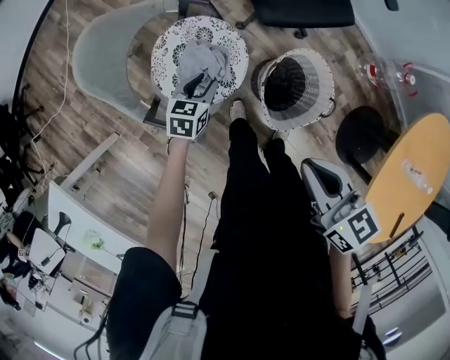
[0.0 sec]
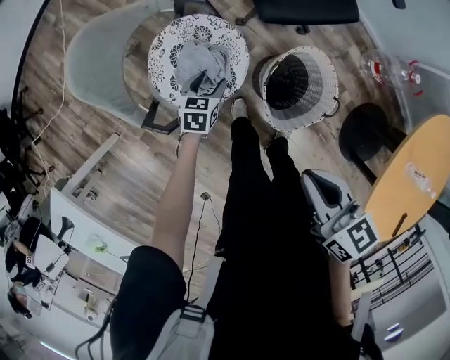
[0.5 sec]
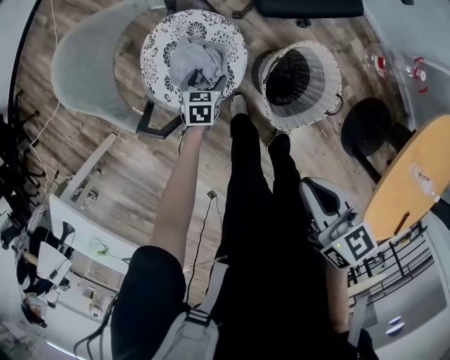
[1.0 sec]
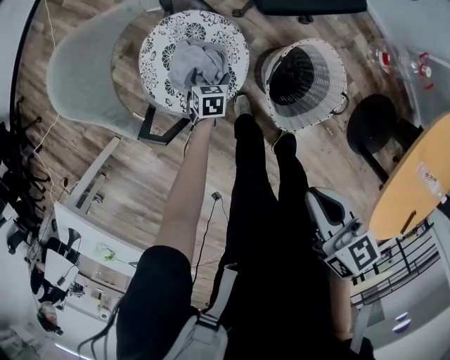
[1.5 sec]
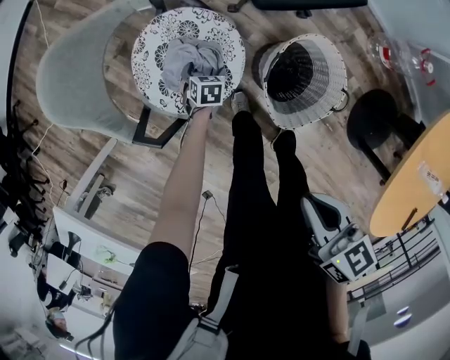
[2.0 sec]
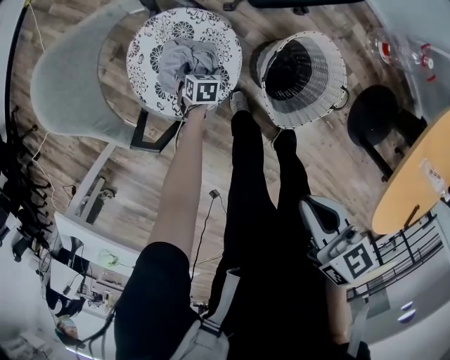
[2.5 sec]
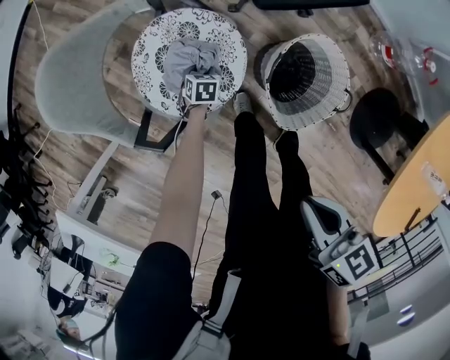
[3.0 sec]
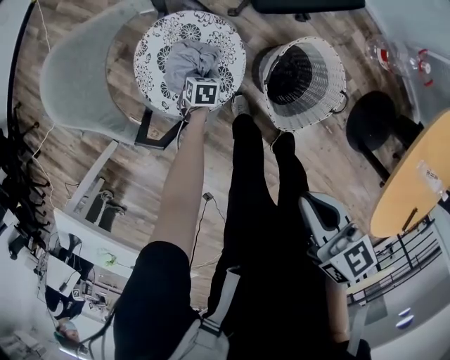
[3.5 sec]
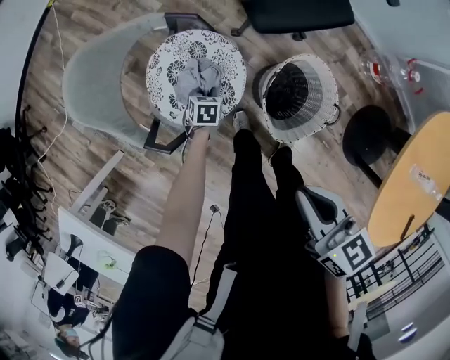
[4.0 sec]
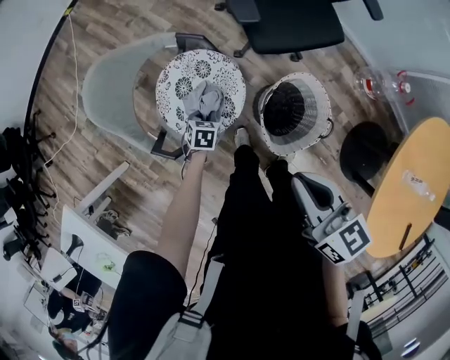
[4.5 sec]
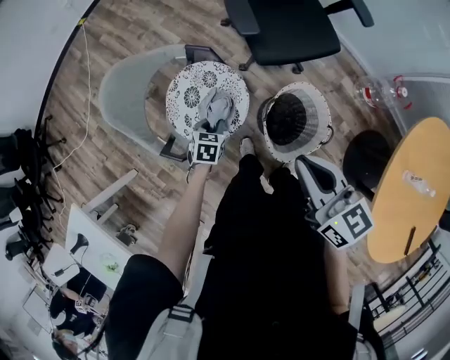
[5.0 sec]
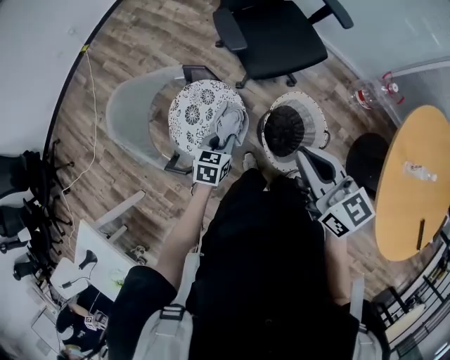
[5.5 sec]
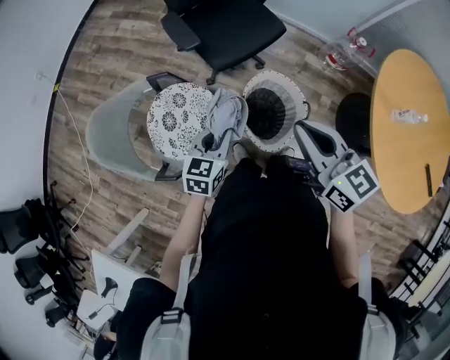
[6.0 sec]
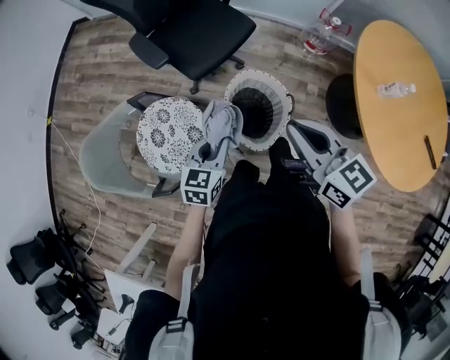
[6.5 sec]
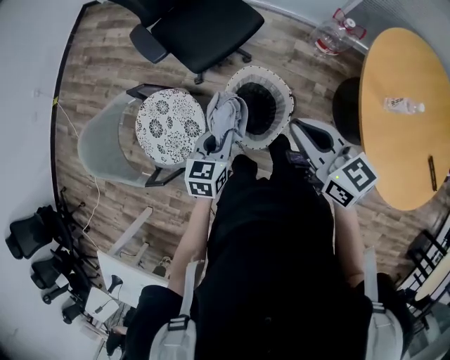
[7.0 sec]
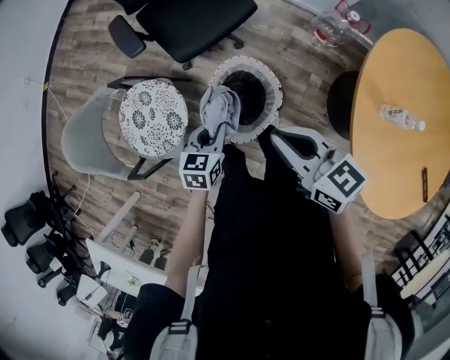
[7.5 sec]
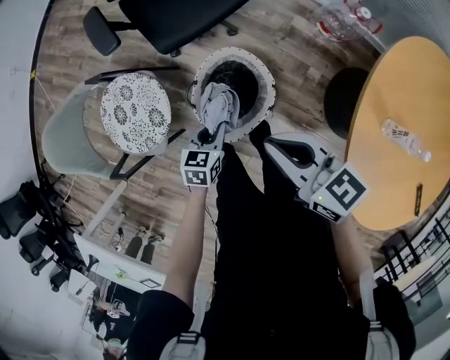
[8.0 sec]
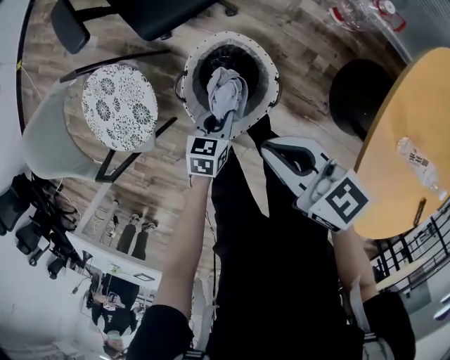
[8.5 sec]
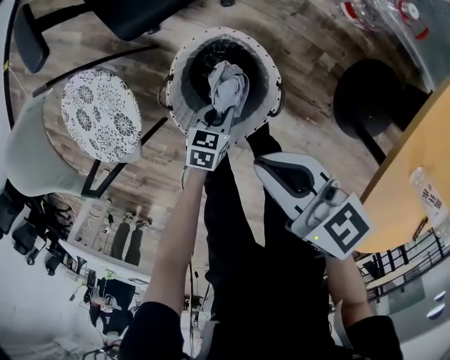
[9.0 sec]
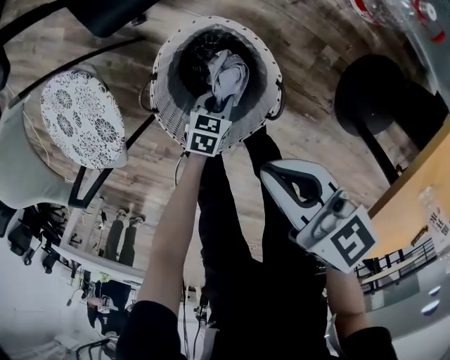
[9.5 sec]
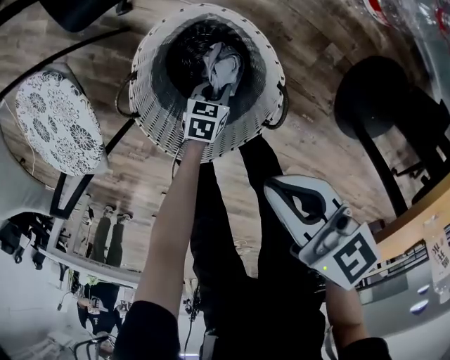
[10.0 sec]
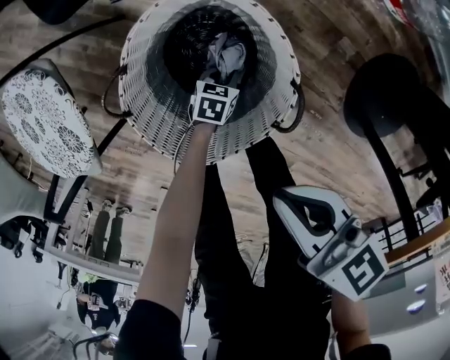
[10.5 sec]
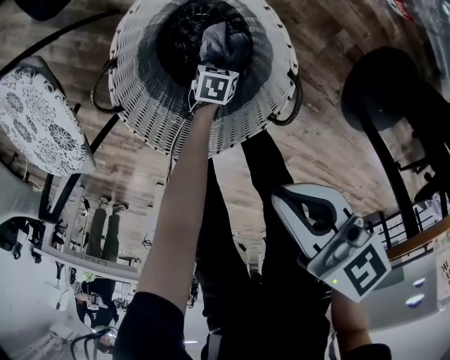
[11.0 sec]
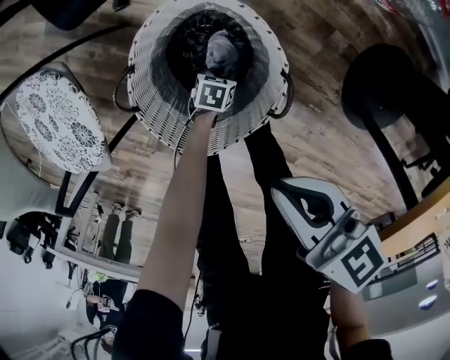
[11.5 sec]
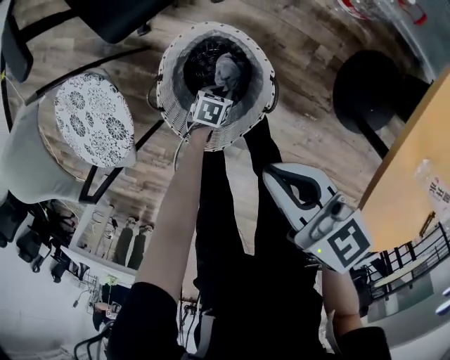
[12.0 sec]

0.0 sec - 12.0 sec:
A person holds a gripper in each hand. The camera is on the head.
0.0 sec - 2.0 sec: The left gripper is displaced downward by about 25 cm, changes its angle by approximately 20 degrees, and opens up. Meanwhile the right gripper travels downward by about 10 cm.
2.0 sec - 4.0 sec: Both grippers move upward, about 5 cm. The left gripper closes.
4.0 sec - 6.0 sec: The right gripper goes about 15 cm upward and to the right, and turns by approximately 30 degrees. Meanwhile the left gripper moves upward and to the right, about 35 cm, and tilts its fingers roughly 40 degrees upward.
6.0 sec - 8.0 sec: Both grippers move to the right and downward, roughly 25 cm. The right gripper rotates approximately 20 degrees. The left gripper rotates some 20 degrees.
8.0 sec - 10.0 sec: The left gripper travels downward by about 40 cm; the right gripper is displaced downward by about 30 cm.
10.0 sec - 12.0 sec: The left gripper is displaced upward by roughly 5 cm. Meanwhile the right gripper is displaced upward by some 10 cm.

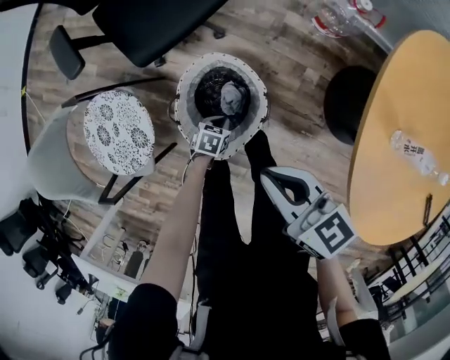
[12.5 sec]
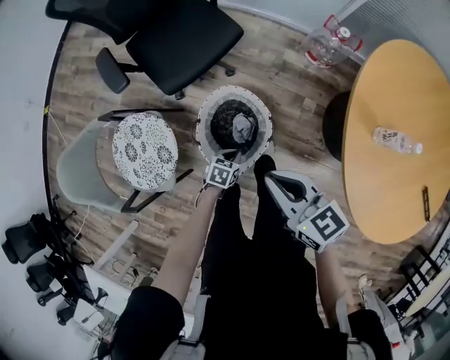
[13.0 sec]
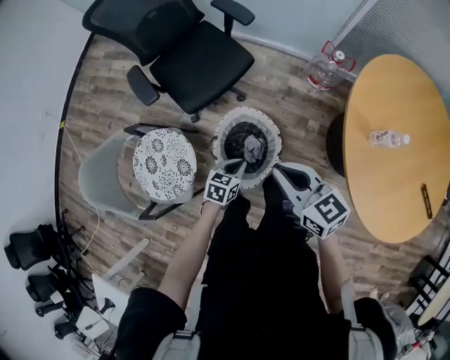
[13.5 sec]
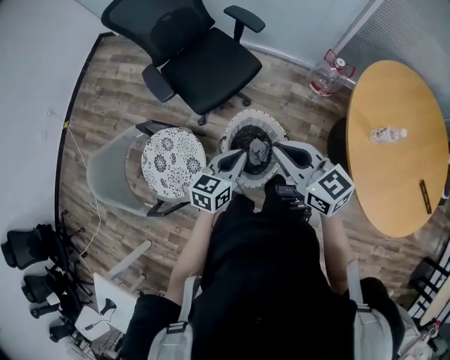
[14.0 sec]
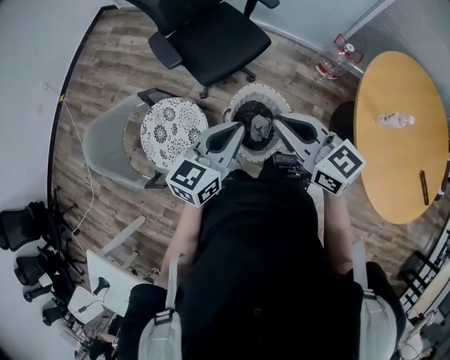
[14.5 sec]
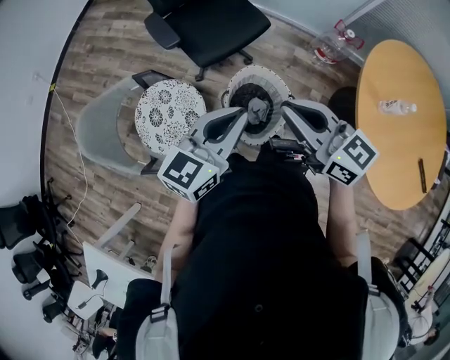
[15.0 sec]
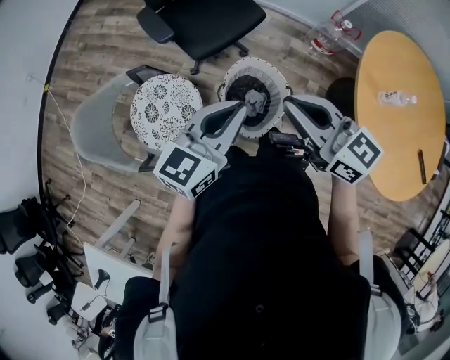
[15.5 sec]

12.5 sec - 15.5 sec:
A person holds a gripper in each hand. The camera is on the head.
12.5 sec - 14.0 sec: The right gripper is displaced upward and to the left by roughly 20 cm. Meanwhile the left gripper moves upward, some 40 cm, and points its fingers about 40 degrees further upward.
14.0 sec - 15.5 sec: The left gripper travels upward and to the left by about 15 cm. Meanwhile the right gripper moves to the left, approximately 5 cm.

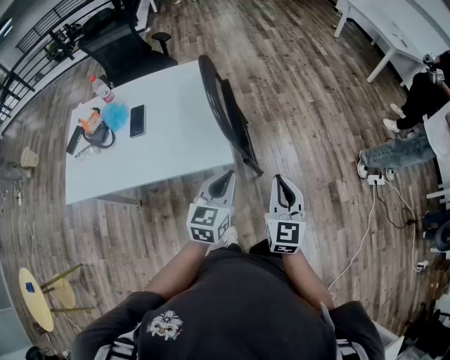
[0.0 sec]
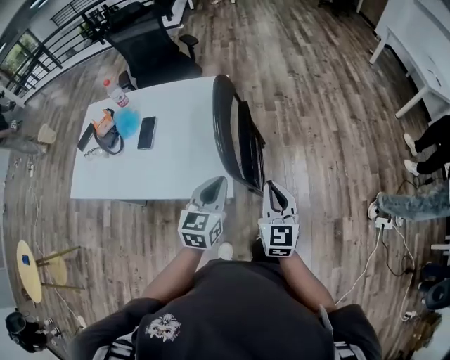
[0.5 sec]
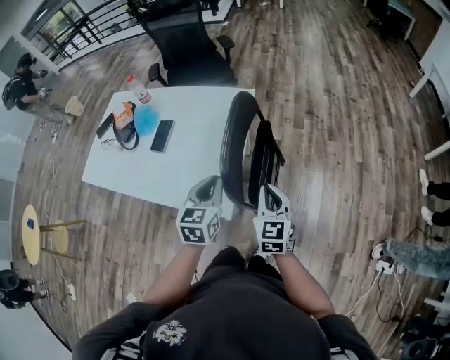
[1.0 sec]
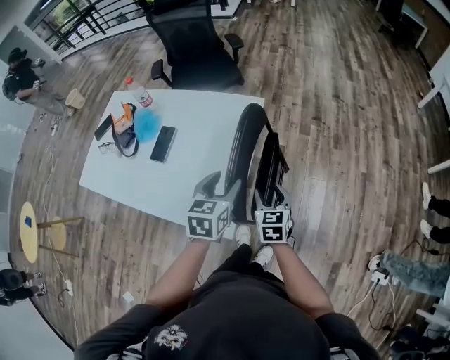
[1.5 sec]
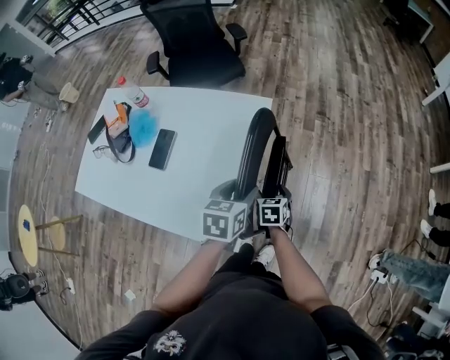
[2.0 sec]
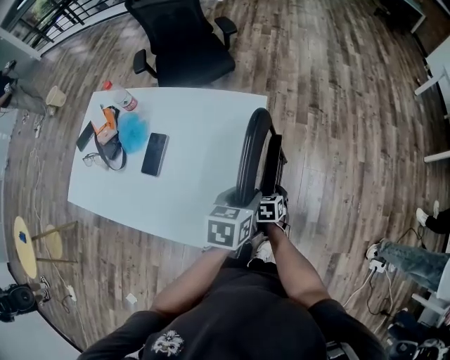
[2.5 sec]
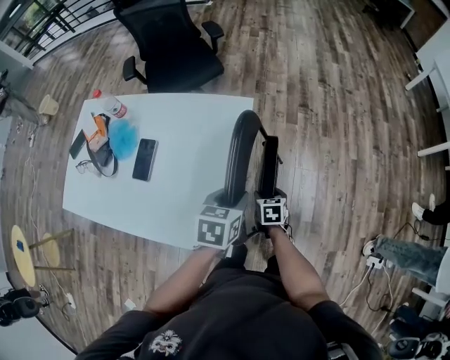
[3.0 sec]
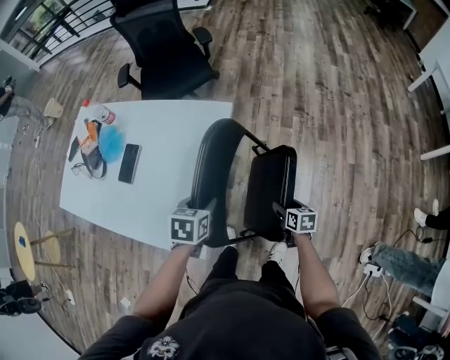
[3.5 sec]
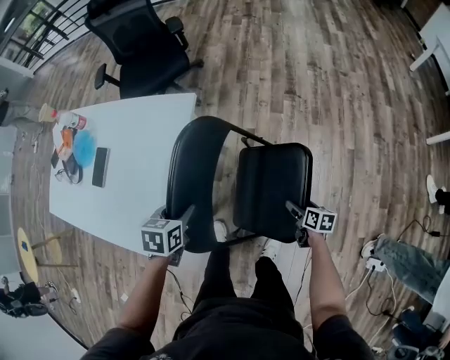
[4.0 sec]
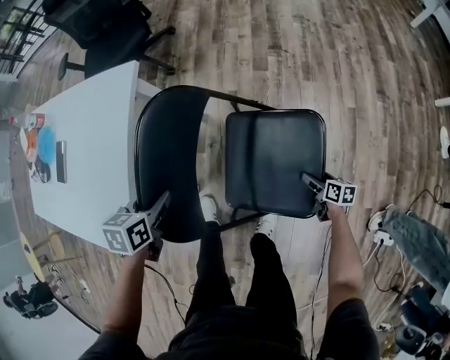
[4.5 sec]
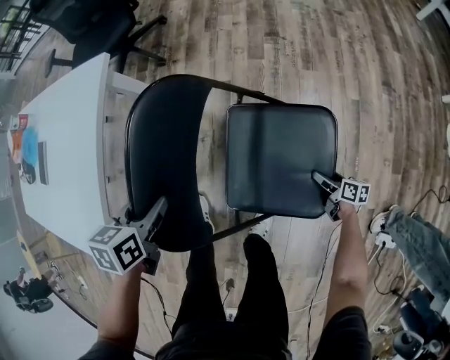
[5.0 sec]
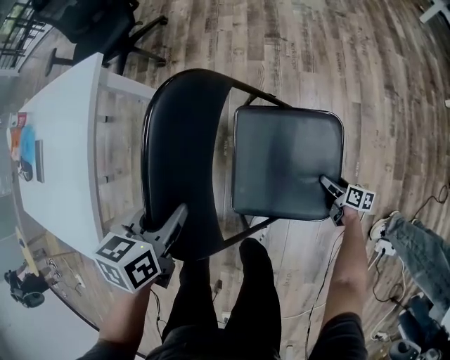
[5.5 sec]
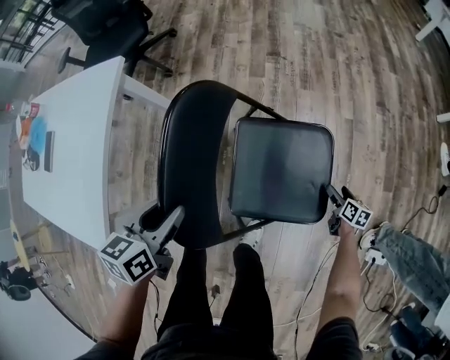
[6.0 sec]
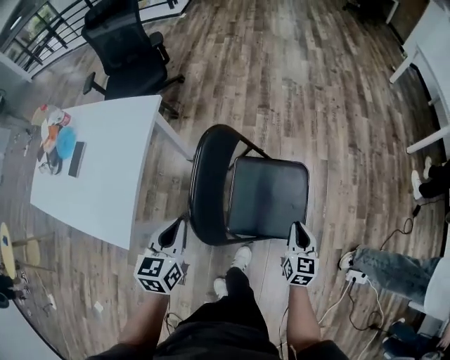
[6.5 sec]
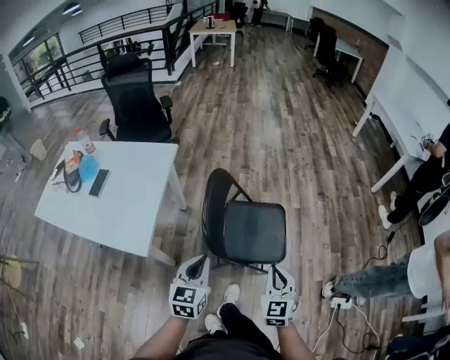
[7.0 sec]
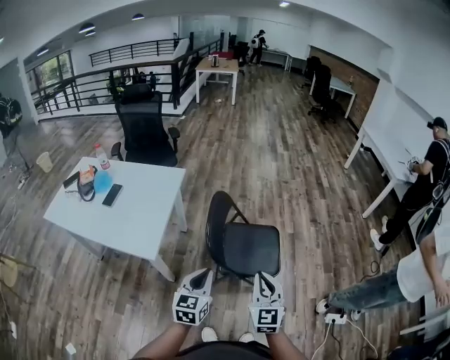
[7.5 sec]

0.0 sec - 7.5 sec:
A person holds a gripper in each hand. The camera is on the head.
0.0 sec - 2.0 sec: The left gripper moves some 35 cm, rotates roughly 40 degrees, and opens its fingers. Meanwhile the right gripper moves some 50 cm, tilts its fingers about 40 degrees downward, and opens its fingers.
2.0 sec - 4.0 sec: The left gripper heads downward and to the right, covering approximately 15 cm; the right gripper goes roughly 35 cm to the right, and rotates about 40 degrees.
4.0 sec - 5.5 sec: The grippers both shift to the right and downward by approximately 30 cm.
5.5 sec - 7.5 sec: The left gripper heads backward and upward, covering roughly 40 cm, angles its fingers upward, by approximately 30 degrees, and closes up. The right gripper travels upward and backward by approximately 80 cm, tips its fingers upward by approximately 30 degrees, and closes up.

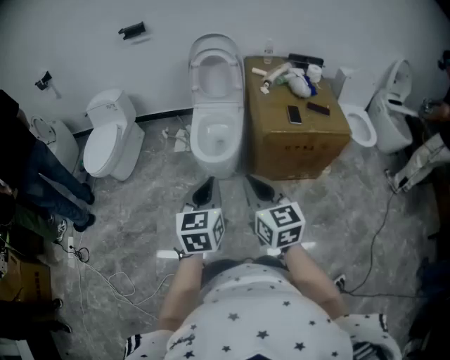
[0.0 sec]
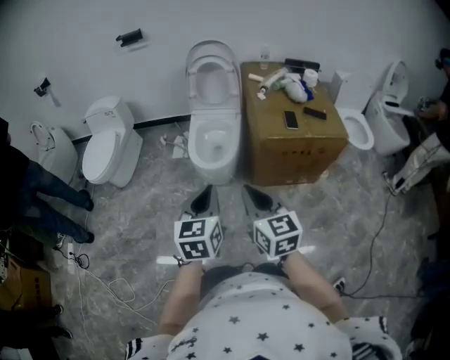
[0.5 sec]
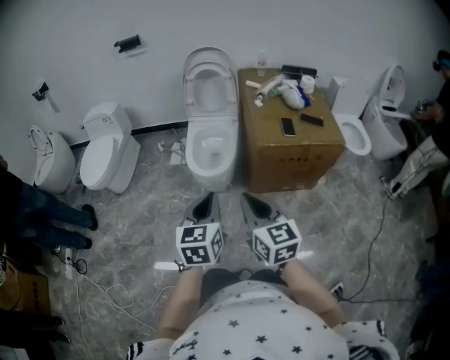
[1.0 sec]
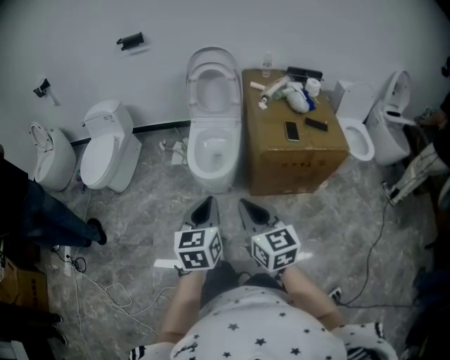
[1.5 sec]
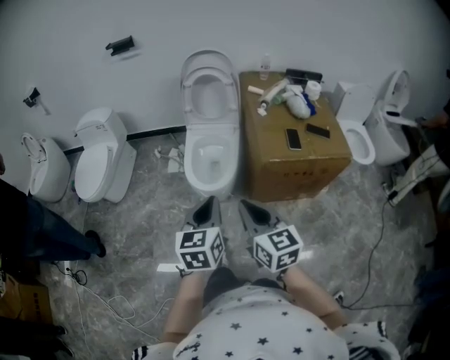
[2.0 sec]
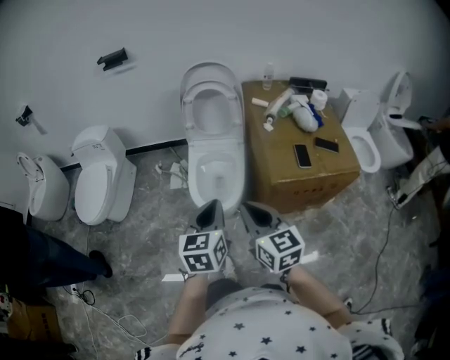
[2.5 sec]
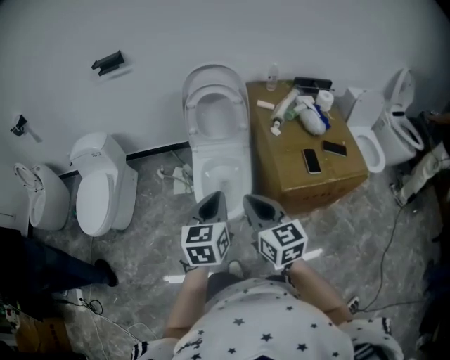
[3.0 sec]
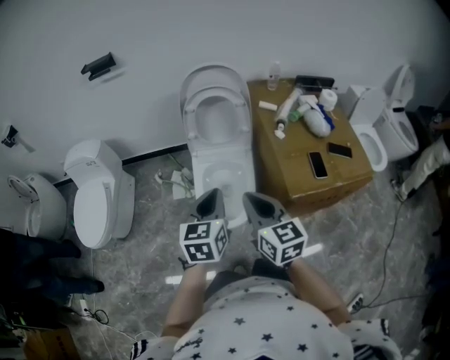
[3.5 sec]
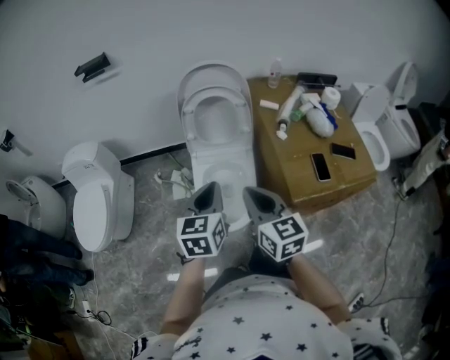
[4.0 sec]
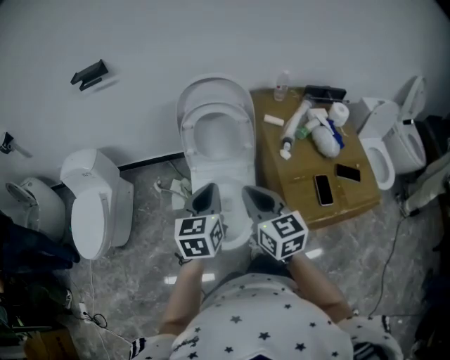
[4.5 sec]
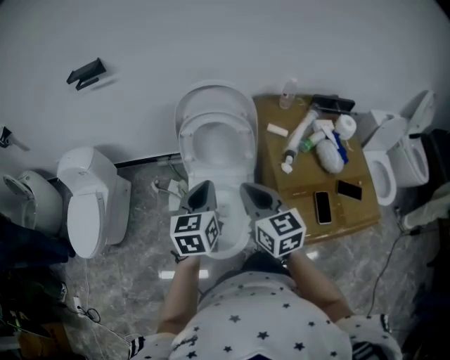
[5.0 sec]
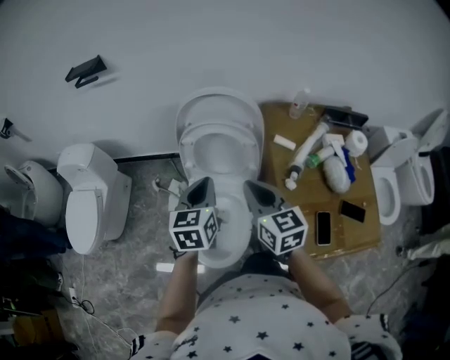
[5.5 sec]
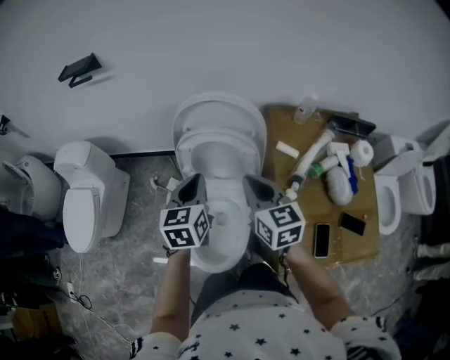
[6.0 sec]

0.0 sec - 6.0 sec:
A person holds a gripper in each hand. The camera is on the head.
0.0 sec - 2.0 sec: The two grippers go about 10 cm forward.
2.0 sec - 4.0 sec: Both grippers travel together forward, roughly 30 cm.
4.0 sec - 6.0 sec: The grippers both shift forward by roughly 30 cm.
